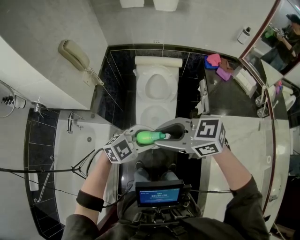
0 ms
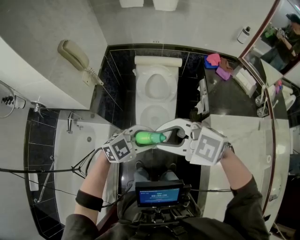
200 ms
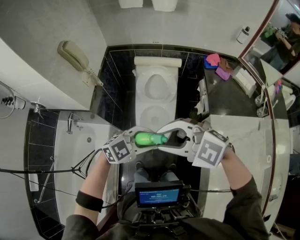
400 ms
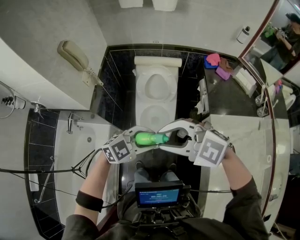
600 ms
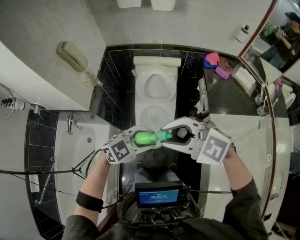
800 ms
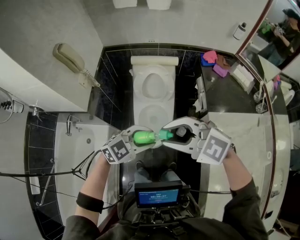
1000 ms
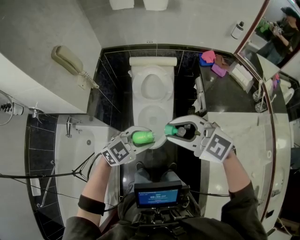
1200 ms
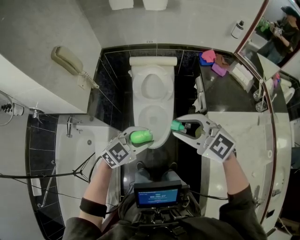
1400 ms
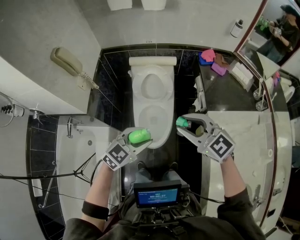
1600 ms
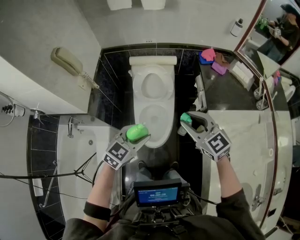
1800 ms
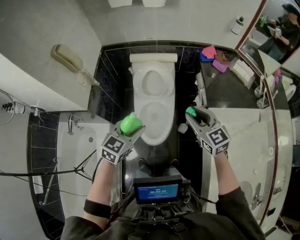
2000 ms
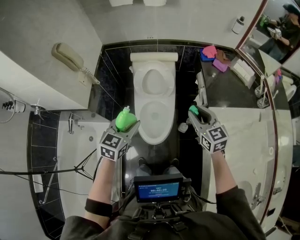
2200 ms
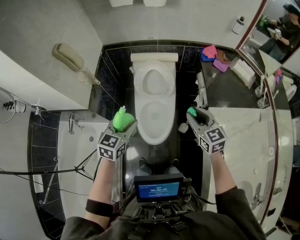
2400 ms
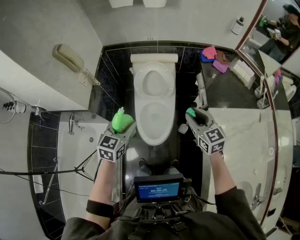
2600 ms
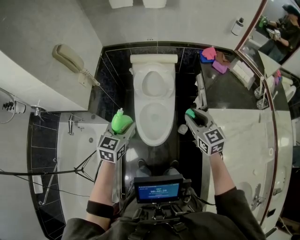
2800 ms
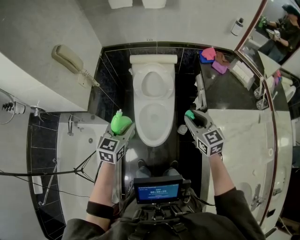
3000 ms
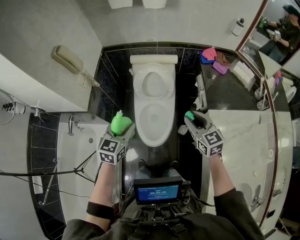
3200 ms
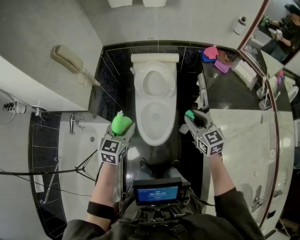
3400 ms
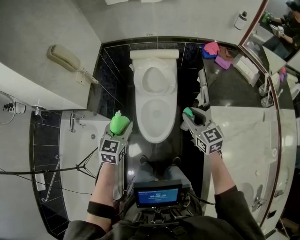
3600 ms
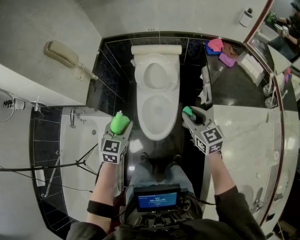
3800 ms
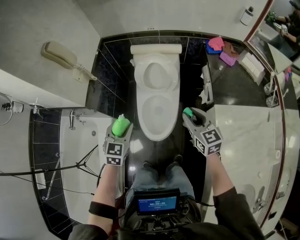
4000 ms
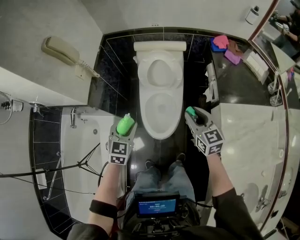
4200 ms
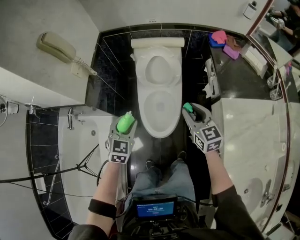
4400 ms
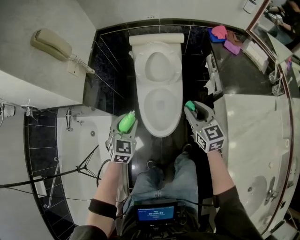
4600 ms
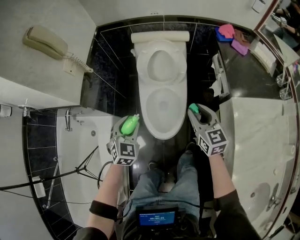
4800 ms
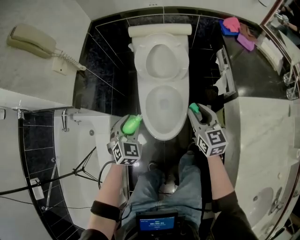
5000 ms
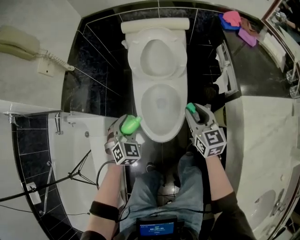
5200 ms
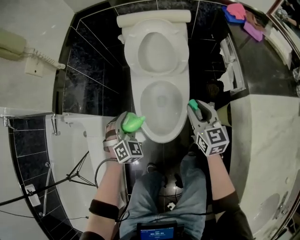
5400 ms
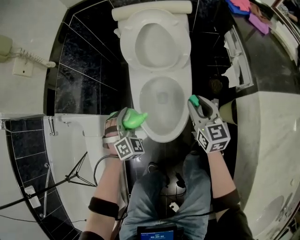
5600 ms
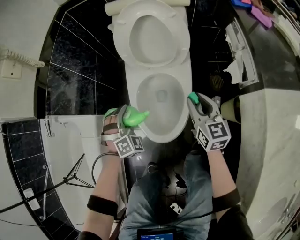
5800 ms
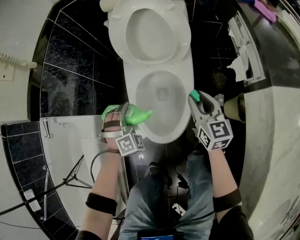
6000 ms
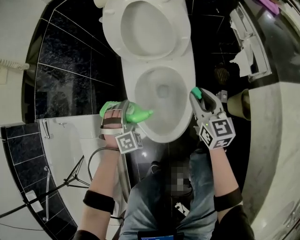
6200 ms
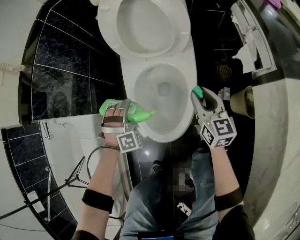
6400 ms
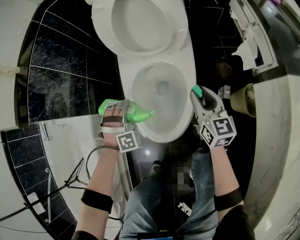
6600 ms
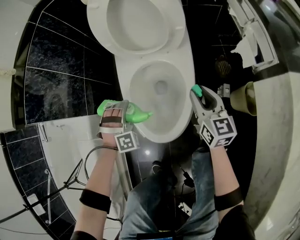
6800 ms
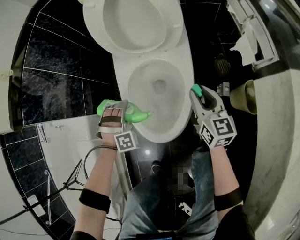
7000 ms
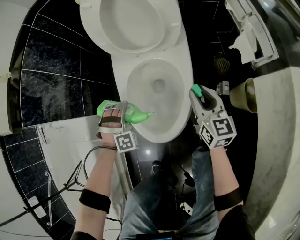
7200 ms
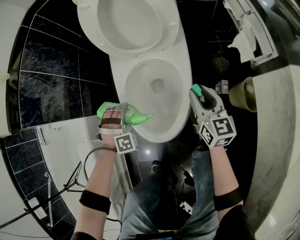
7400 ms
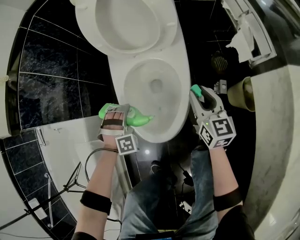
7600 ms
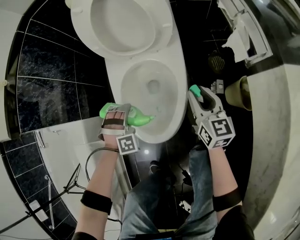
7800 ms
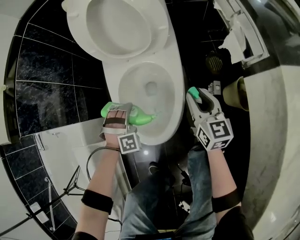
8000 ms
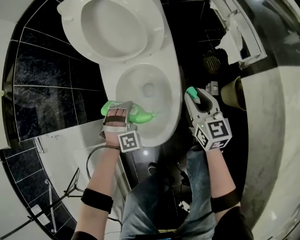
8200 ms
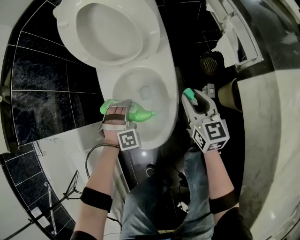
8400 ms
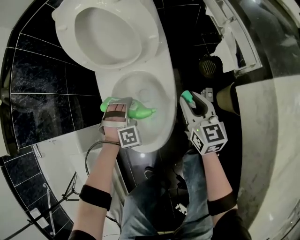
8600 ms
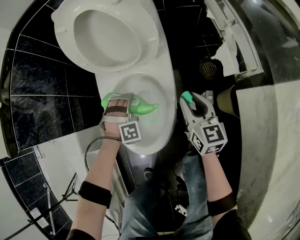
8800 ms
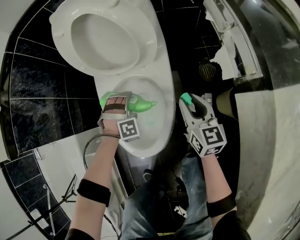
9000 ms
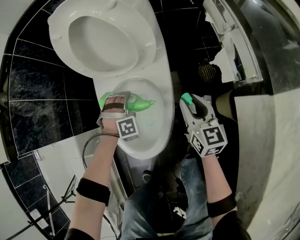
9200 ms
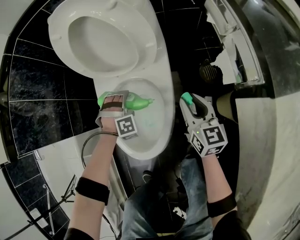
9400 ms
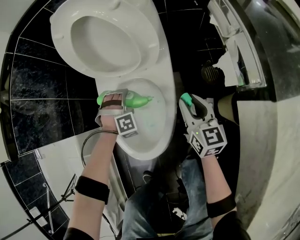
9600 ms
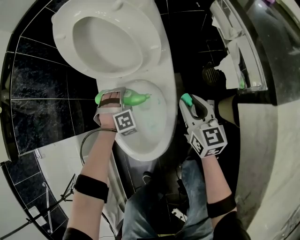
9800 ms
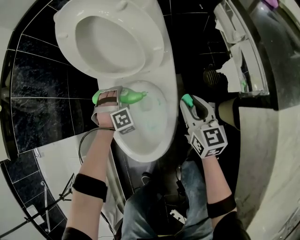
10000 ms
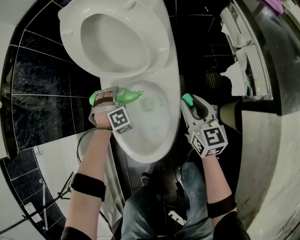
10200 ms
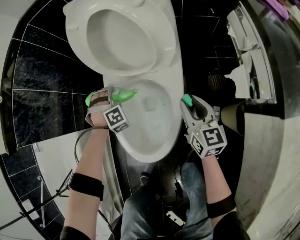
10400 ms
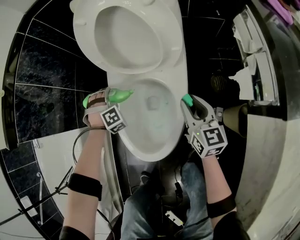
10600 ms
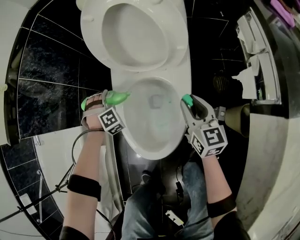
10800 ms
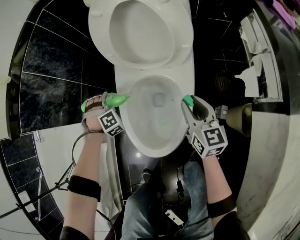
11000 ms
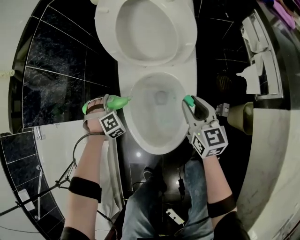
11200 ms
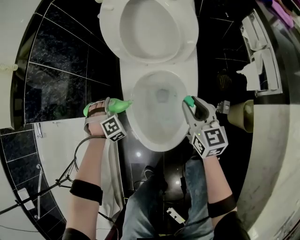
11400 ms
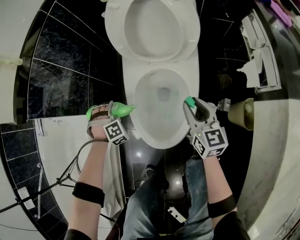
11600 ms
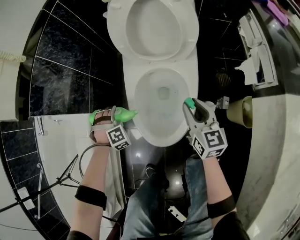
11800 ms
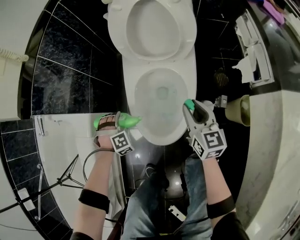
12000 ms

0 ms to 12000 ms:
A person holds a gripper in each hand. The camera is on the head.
0 ms to 1600 ms: The right gripper shifts by approximately 10 cm, and rotates some 40 degrees.
1600 ms to 3000 ms: The left gripper is displaced to the left and forward by about 10 cm, and turns by about 40 degrees; the right gripper heads downward and to the right, covering about 10 cm, and swivels some 30 degrees.
3000 ms to 4400 ms: The grippers both shift downward by about 10 cm.
4400 ms to 6000 ms: The two grippers go roughly 35 cm downward. The left gripper rolls clockwise, seen from behind, by roughly 50 degrees.
6000 ms to 7600 ms: The grippers both shift downward by roughly 10 cm. The left gripper swivels about 20 degrees.
7600 ms to 9000 ms: The left gripper is displaced to the right and forward by some 15 cm. The right gripper moves to the right, roughly 5 cm.
9000 ms to 10400 ms: The left gripper heads to the left and forward, covering about 15 cm, while the right gripper heads forward, covering approximately 5 cm.
10400 ms to 12000 ms: The left gripper travels to the left and backward by roughly 20 cm, while the right gripper travels to the left and upward by some 15 cm.

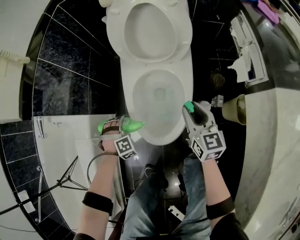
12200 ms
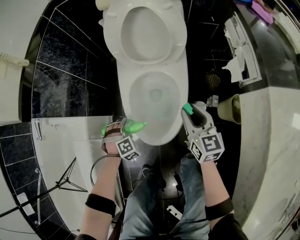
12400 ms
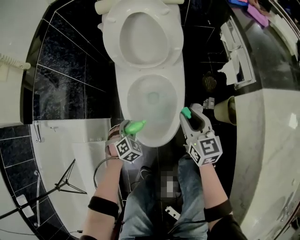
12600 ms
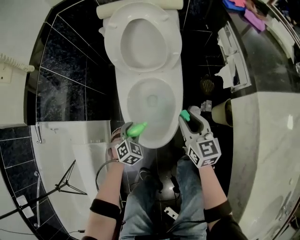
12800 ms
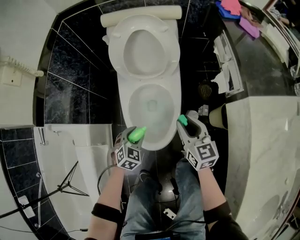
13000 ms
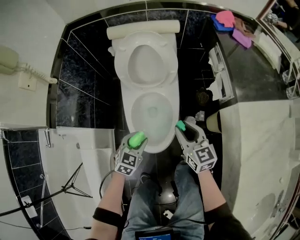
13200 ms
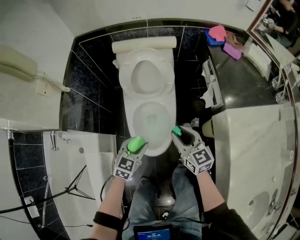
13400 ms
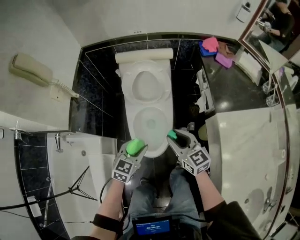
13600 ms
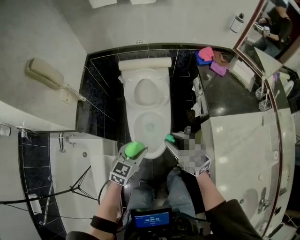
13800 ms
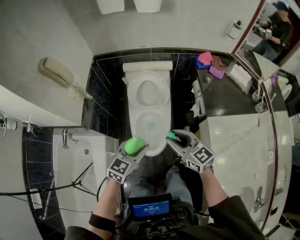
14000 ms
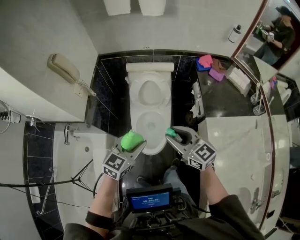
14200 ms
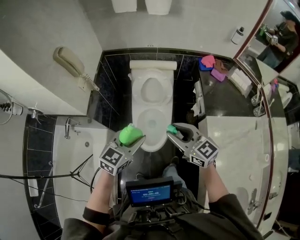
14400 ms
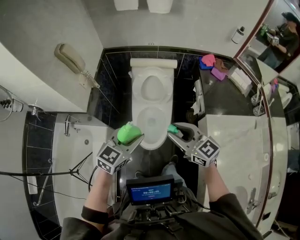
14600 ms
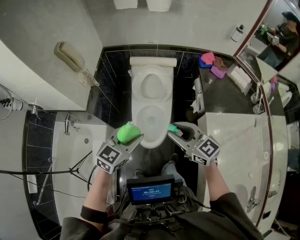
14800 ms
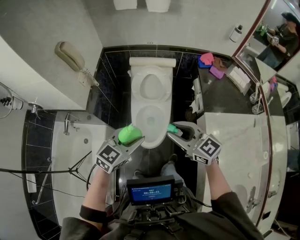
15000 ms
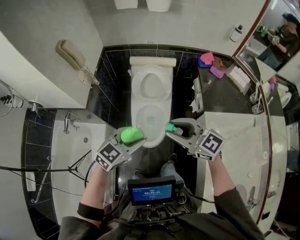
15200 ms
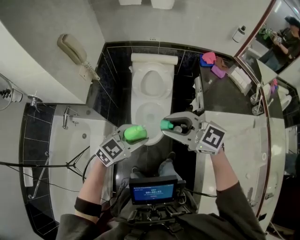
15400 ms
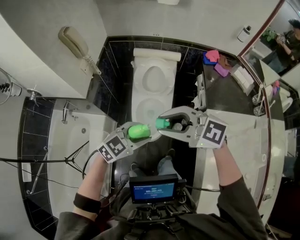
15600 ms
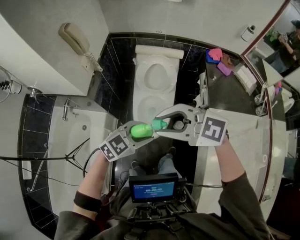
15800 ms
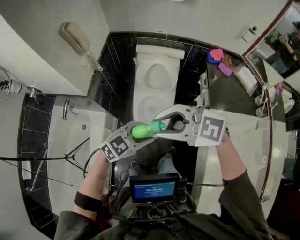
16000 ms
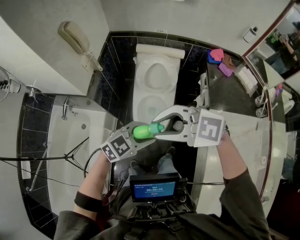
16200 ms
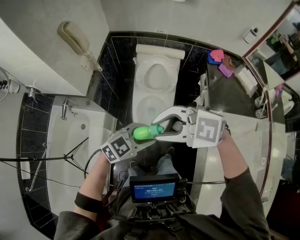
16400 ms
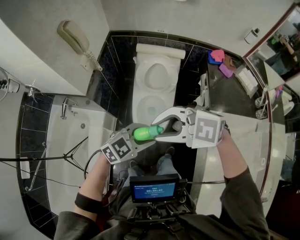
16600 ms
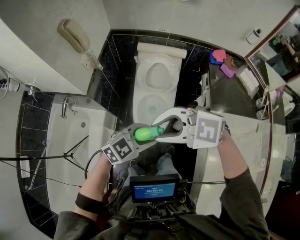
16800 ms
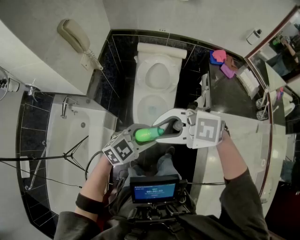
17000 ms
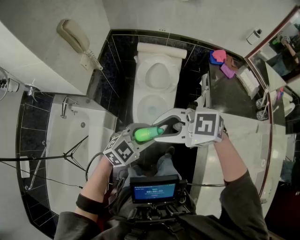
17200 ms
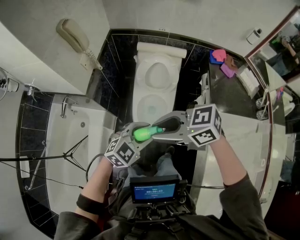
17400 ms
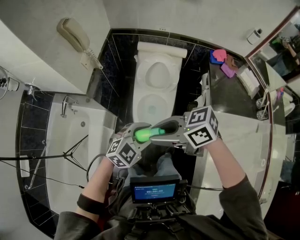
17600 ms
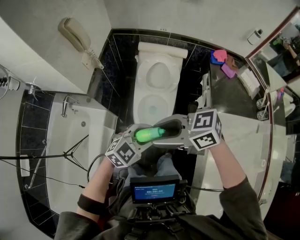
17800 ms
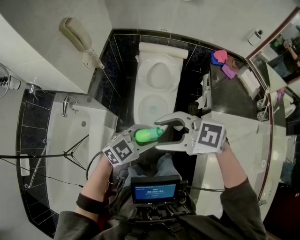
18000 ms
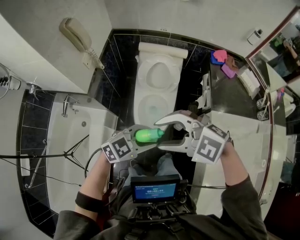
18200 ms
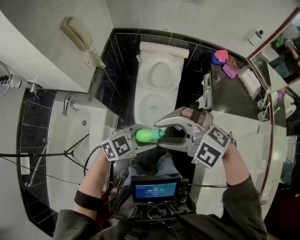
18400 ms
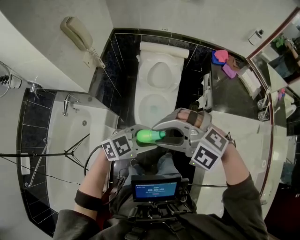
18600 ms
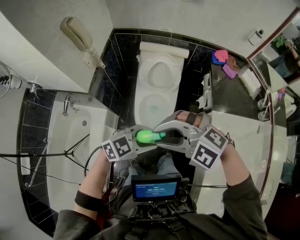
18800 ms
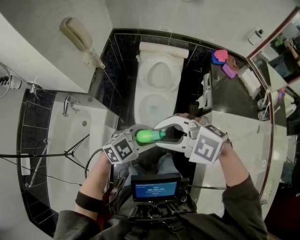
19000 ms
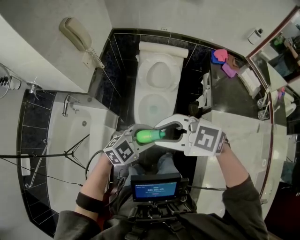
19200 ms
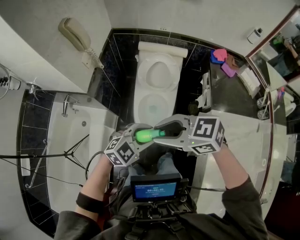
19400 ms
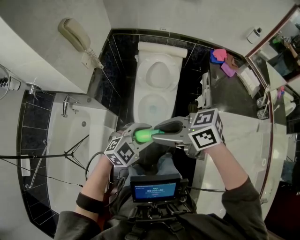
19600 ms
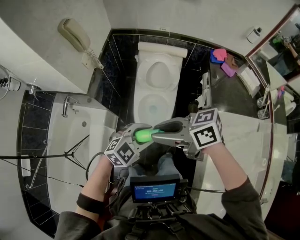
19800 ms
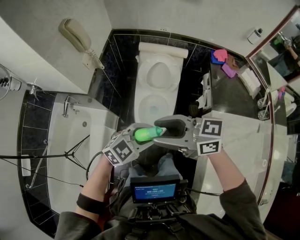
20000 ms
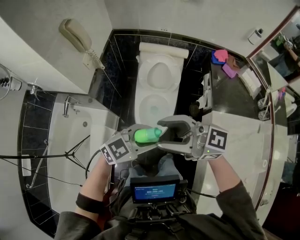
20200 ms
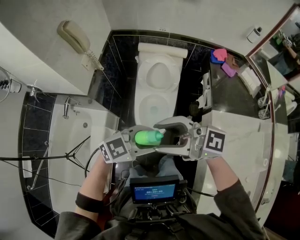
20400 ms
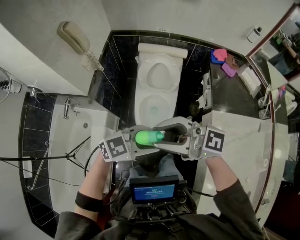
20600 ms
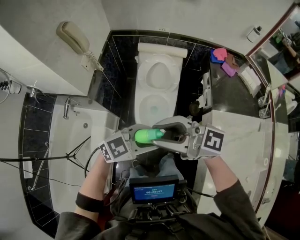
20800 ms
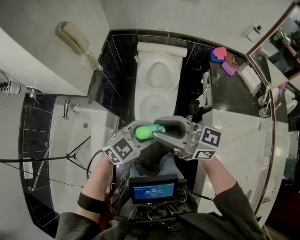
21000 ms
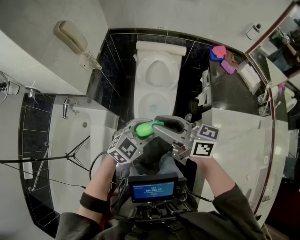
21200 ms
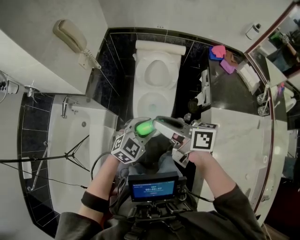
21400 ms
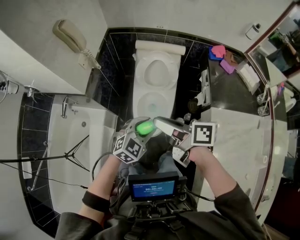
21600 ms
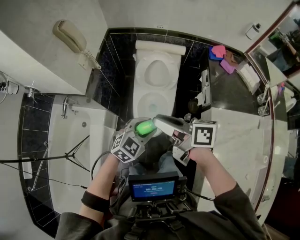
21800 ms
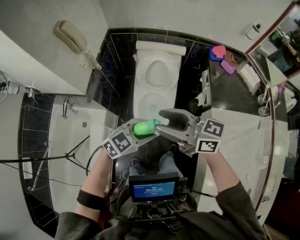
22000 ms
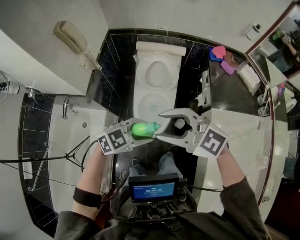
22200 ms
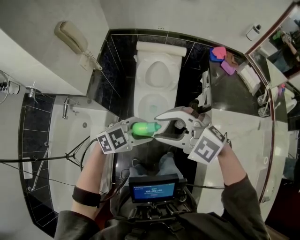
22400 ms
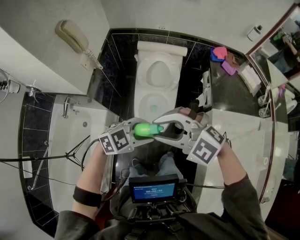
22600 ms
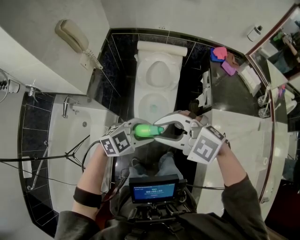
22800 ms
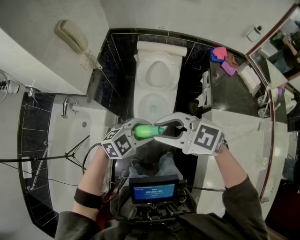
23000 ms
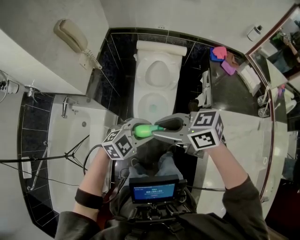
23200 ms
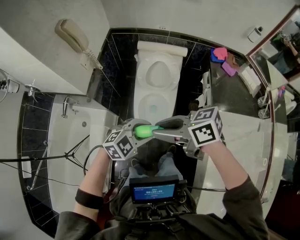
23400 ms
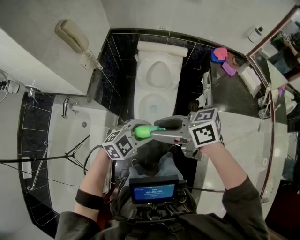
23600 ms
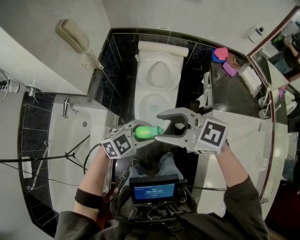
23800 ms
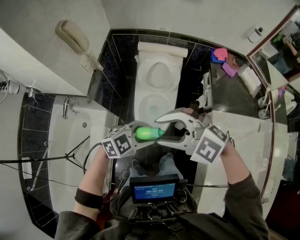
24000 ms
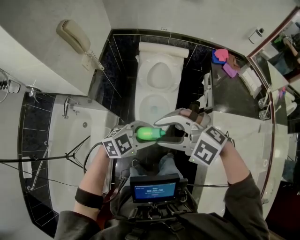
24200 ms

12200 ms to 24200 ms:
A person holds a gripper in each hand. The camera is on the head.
12200 ms to 13800 ms: Both grippers move upward, about 40 cm. The left gripper rotates approximately 80 degrees, while the right gripper swivels some 20 degrees.
13800 ms to 15200 ms: Both grippers travel together upward and backward, roughly 20 cm. The right gripper turns by some 30 degrees.
15200 ms to 16600 ms: The right gripper ends up some 10 cm from where it was, and swivels approximately 50 degrees.
16600 ms to 18200 ms: The right gripper opens its fingers.
18200 ms to 19800 ms: The right gripper twists approximately 60 degrees clockwise, seen from behind, and closes up.
19800 ms to 21200 ms: The right gripper reaches about 10 cm upward, then returns, and turns by some 30 degrees.
21200 ms to 22600 ms: The right gripper rotates around the line of its fingers by some 70 degrees, counterclockwise from behind; the left gripper changes its angle by roughly 20 degrees.
